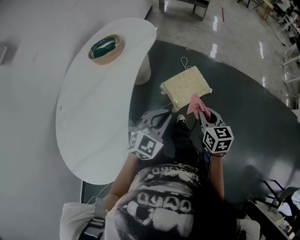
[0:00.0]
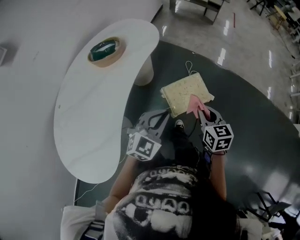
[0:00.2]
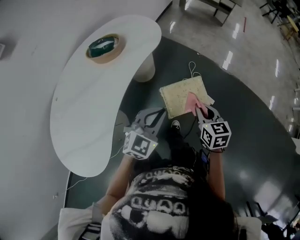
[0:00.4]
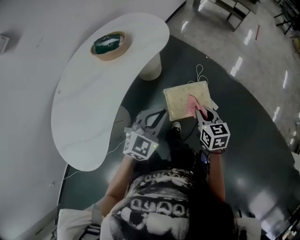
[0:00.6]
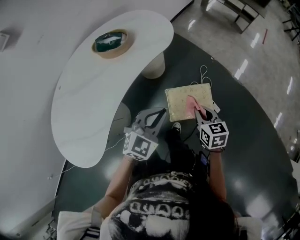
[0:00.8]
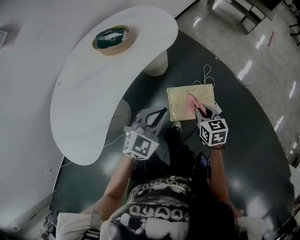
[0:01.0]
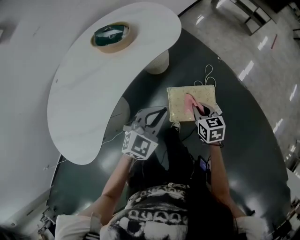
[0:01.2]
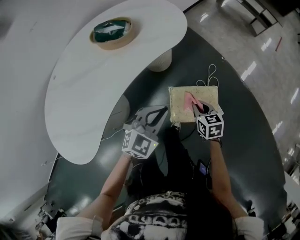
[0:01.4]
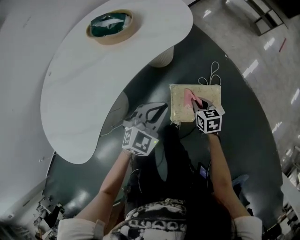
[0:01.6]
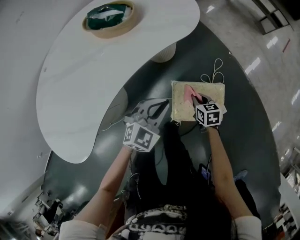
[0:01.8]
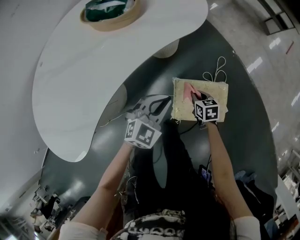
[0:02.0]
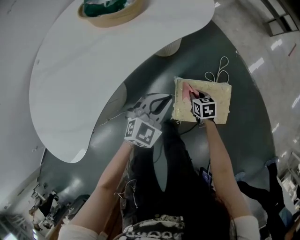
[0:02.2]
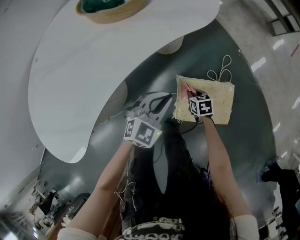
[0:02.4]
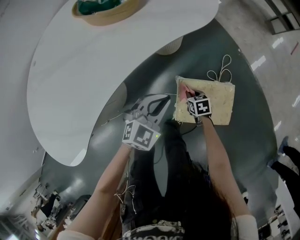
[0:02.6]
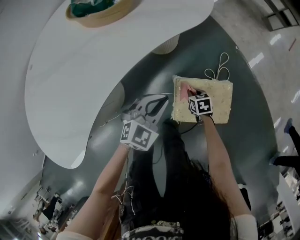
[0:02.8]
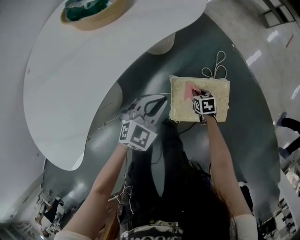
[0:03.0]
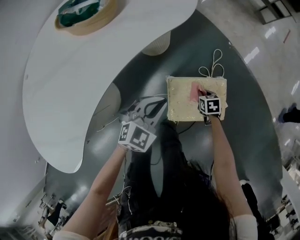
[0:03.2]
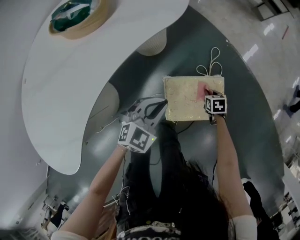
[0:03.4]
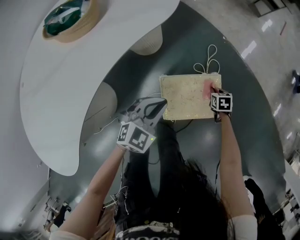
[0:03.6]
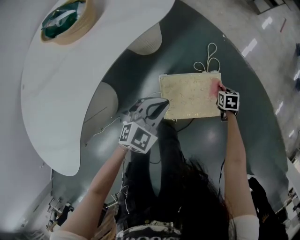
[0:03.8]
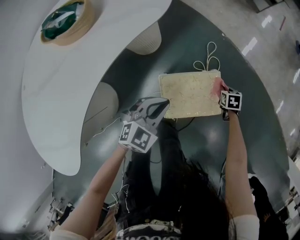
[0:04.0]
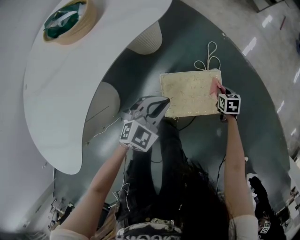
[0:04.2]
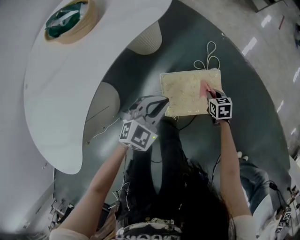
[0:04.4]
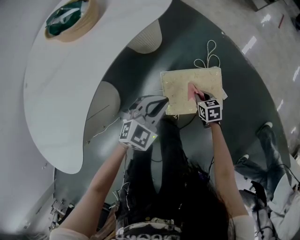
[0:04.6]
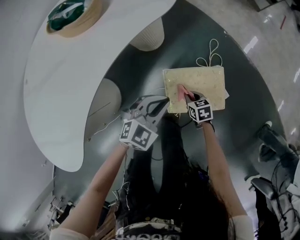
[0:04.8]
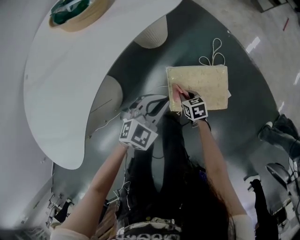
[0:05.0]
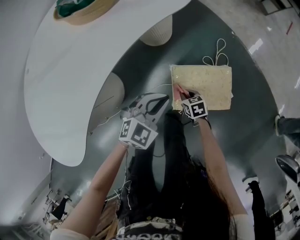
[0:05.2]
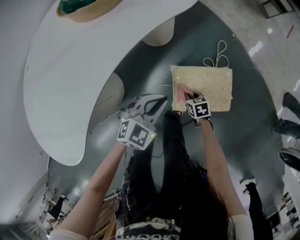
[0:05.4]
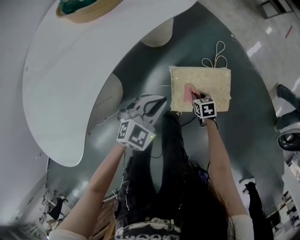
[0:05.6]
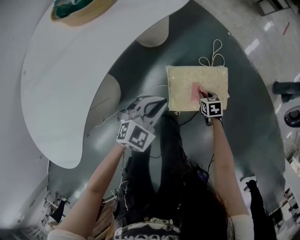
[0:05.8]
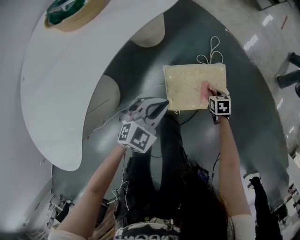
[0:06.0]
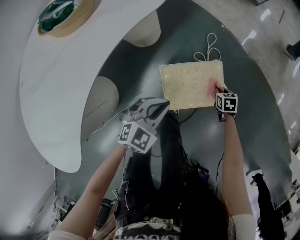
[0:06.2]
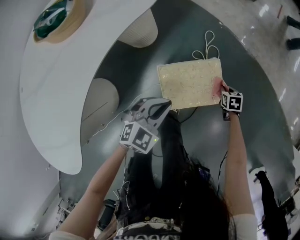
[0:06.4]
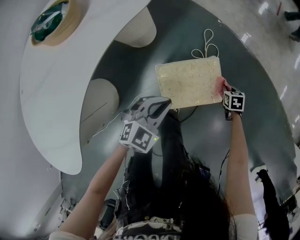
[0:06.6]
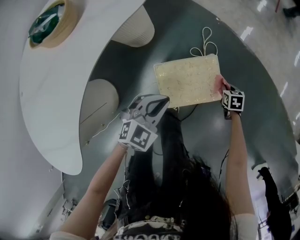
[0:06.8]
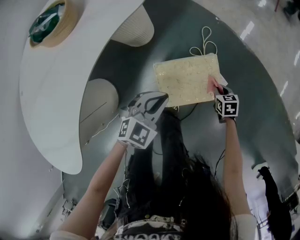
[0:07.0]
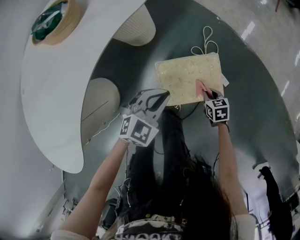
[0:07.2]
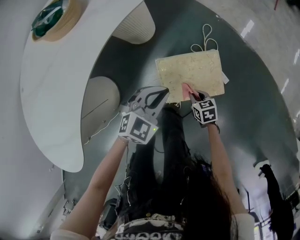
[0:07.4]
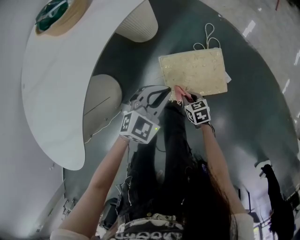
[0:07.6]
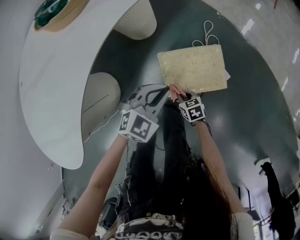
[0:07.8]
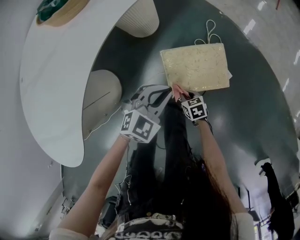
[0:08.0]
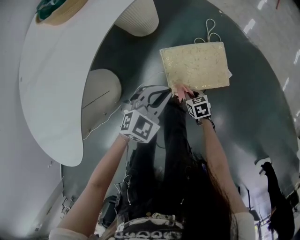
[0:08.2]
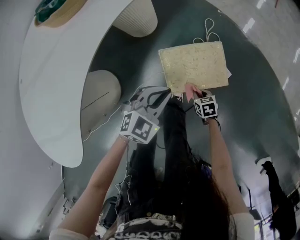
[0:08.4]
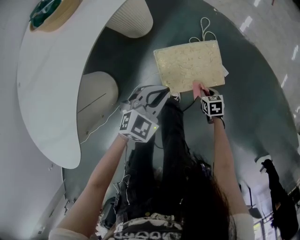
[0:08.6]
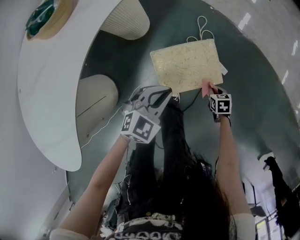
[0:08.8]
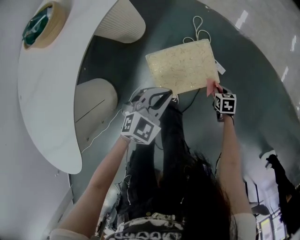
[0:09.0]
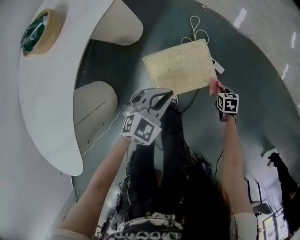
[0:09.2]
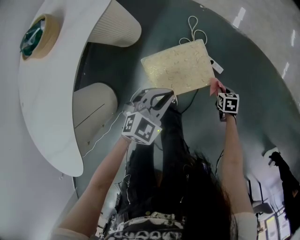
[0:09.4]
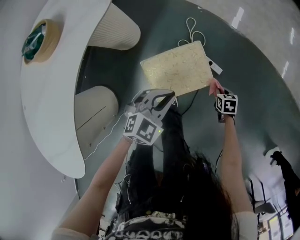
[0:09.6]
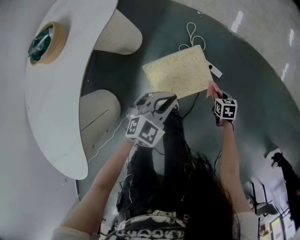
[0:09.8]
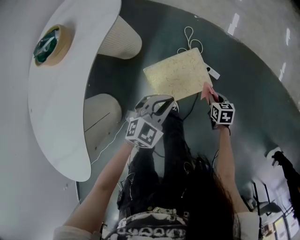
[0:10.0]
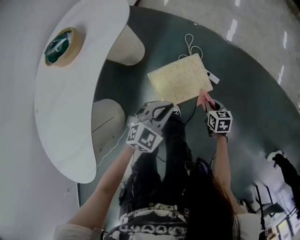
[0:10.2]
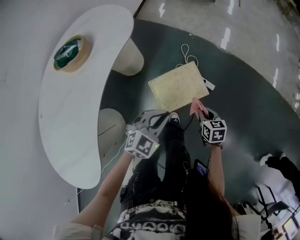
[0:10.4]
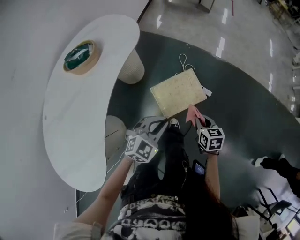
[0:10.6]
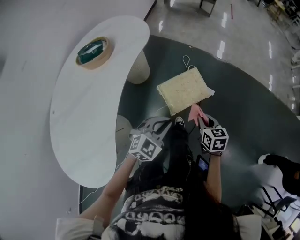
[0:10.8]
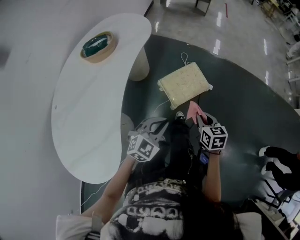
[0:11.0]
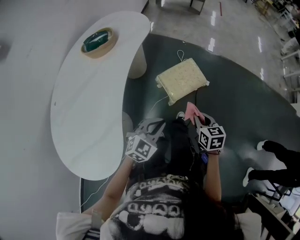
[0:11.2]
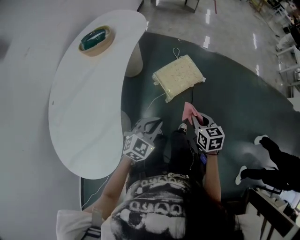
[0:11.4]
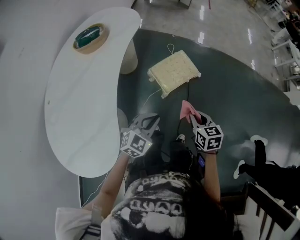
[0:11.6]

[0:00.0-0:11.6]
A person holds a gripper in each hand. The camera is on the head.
0:00.0 to 0:01.4: The left gripper changes place by roughly 20 cm, and turns by about 30 degrees. Meanwhile the right gripper moves roughly 30 cm, and changes its angle by about 40 degrees.
0:01.4 to 0:02.8: The left gripper is displaced downward by approximately 15 cm. The right gripper goes some 30 cm downward, and swivels about 20 degrees.
0:02.8 to 0:04.4: The right gripper changes place by about 20 cm. The left gripper ends up about 10 cm from where it was.
0:04.4 to 0:05.8: Both grippers travel together to the left, some 5 cm.
0:05.8 to 0:07.2: The right gripper travels to the right and back again, about 20 cm each way. Meanwhile the left gripper shifts about 5 cm to the right.
0:07.2 to 0:08.8: The two grippers go about 5 cm backward. The right gripper travels to the left and back again, approximately 15 cm each way.
0:08.8 to 0:10.2: The left gripper travels upward by roughly 10 cm, while the right gripper heads upward, covering roughly 15 cm.
0:10.2 to 0:11.6: The left gripper moves backward and upward, about 30 cm. The right gripper shifts roughly 40 cm backward, upward and to the left.

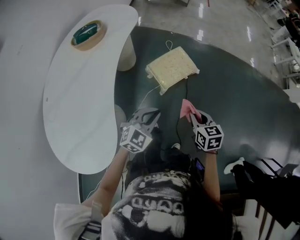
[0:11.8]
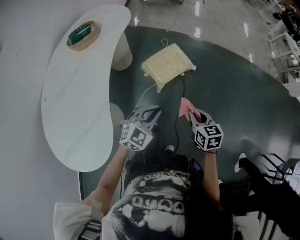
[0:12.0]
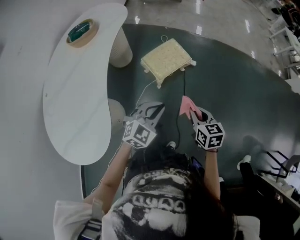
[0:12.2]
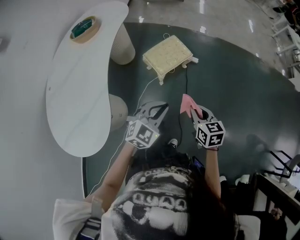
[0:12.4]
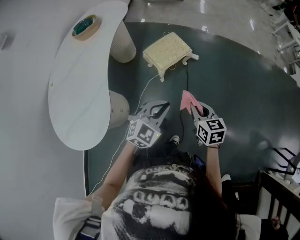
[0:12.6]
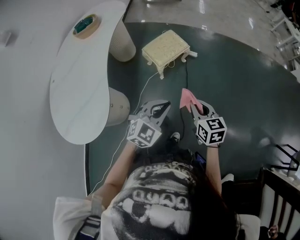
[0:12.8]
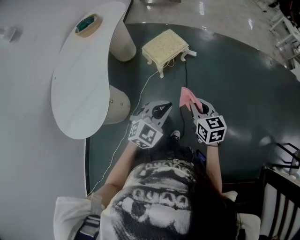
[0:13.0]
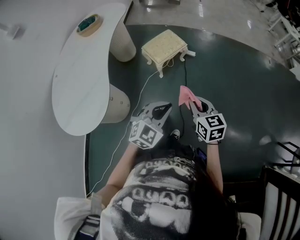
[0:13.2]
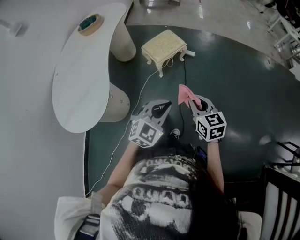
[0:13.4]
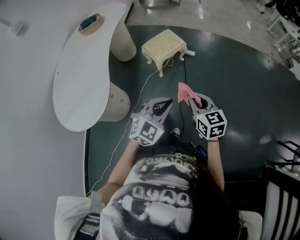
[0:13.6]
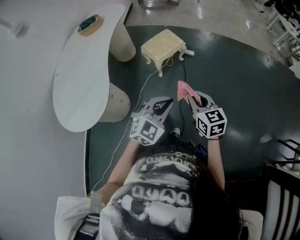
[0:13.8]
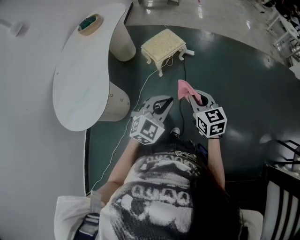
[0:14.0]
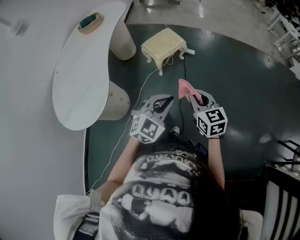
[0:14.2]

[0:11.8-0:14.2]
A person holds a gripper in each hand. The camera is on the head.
0:11.8 to 0:13.0: The two grippers go approximately 25 cm backward and to the right.
0:13.0 to 0:14.2: The two grippers go about 5 cm backward.

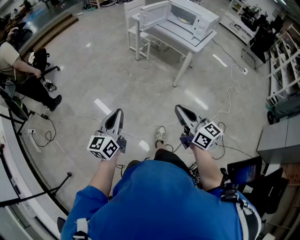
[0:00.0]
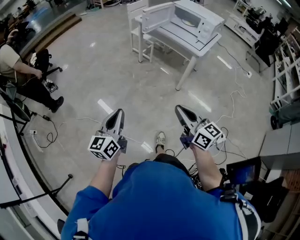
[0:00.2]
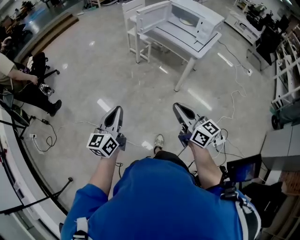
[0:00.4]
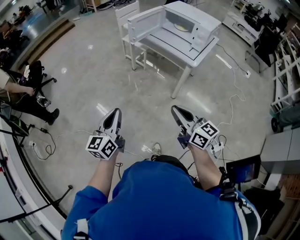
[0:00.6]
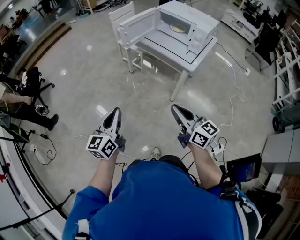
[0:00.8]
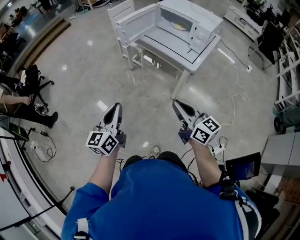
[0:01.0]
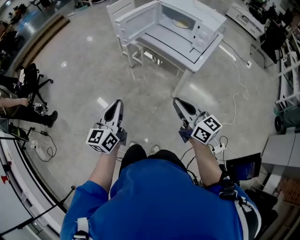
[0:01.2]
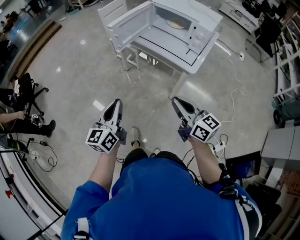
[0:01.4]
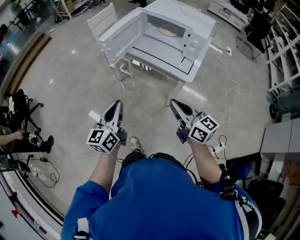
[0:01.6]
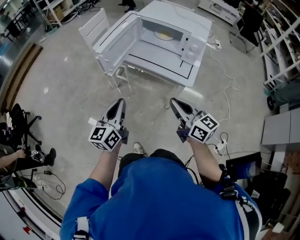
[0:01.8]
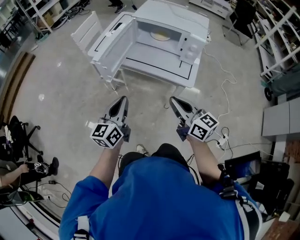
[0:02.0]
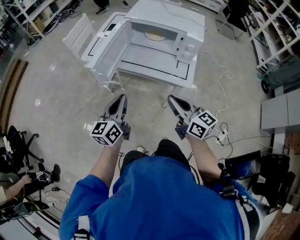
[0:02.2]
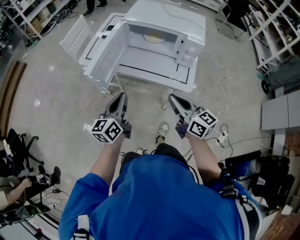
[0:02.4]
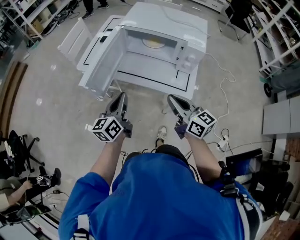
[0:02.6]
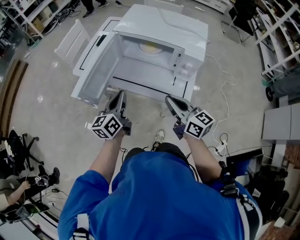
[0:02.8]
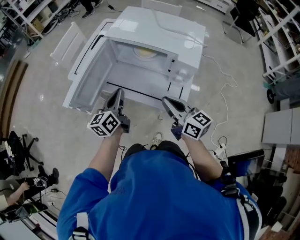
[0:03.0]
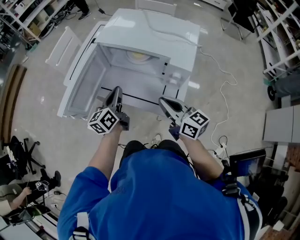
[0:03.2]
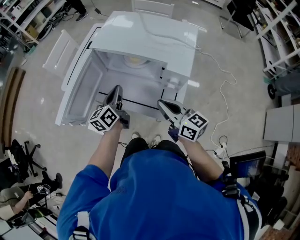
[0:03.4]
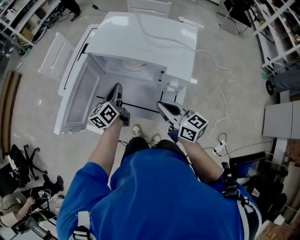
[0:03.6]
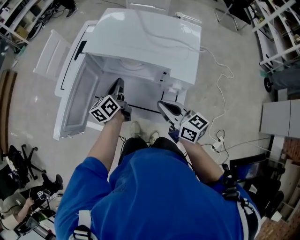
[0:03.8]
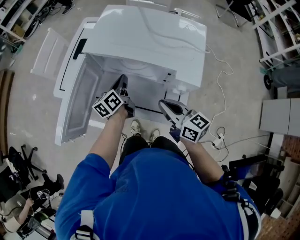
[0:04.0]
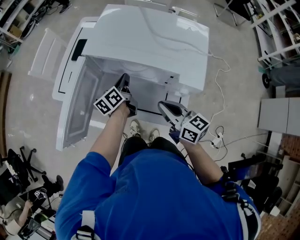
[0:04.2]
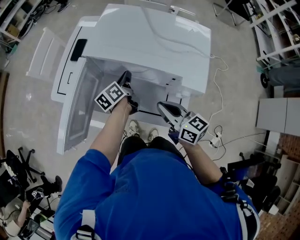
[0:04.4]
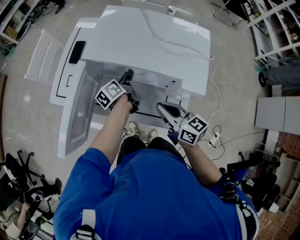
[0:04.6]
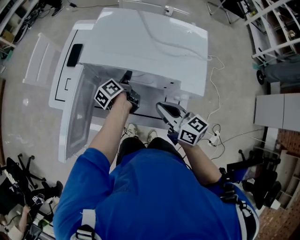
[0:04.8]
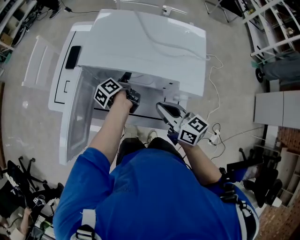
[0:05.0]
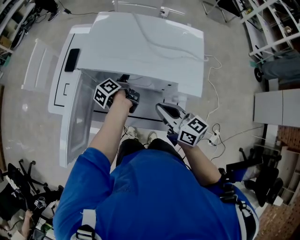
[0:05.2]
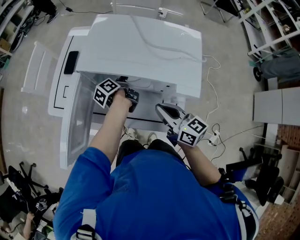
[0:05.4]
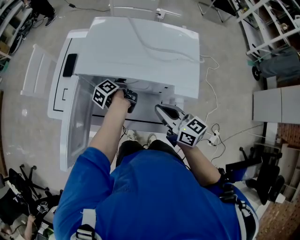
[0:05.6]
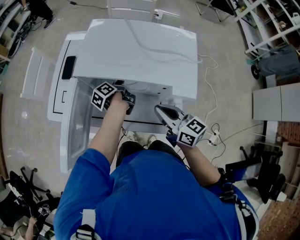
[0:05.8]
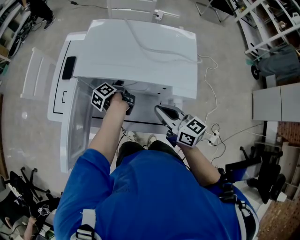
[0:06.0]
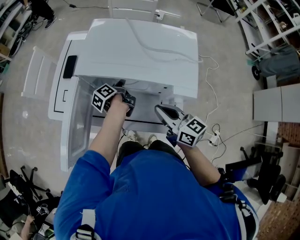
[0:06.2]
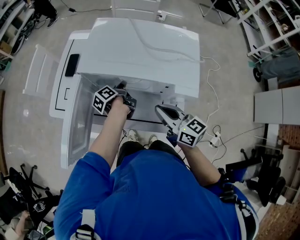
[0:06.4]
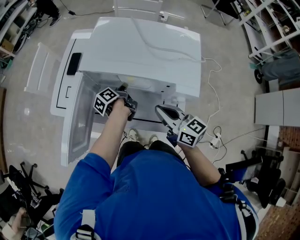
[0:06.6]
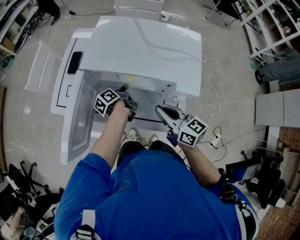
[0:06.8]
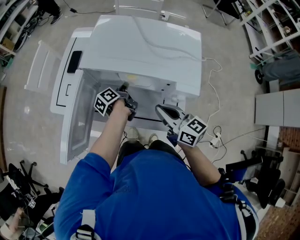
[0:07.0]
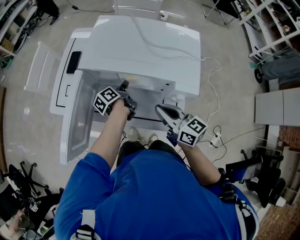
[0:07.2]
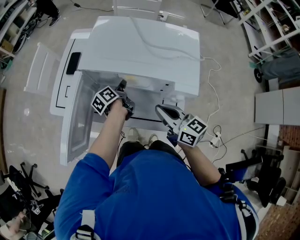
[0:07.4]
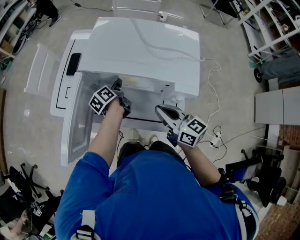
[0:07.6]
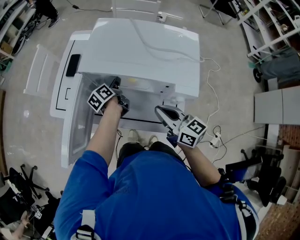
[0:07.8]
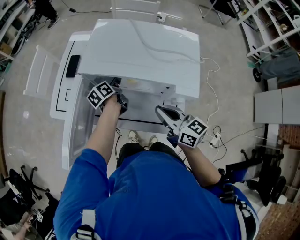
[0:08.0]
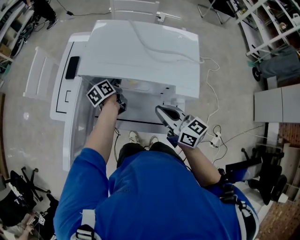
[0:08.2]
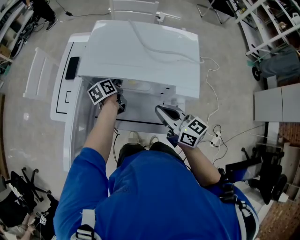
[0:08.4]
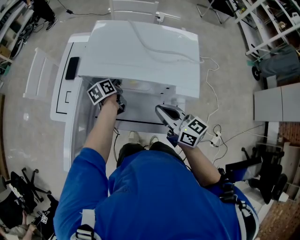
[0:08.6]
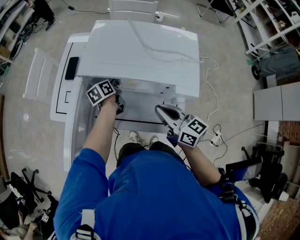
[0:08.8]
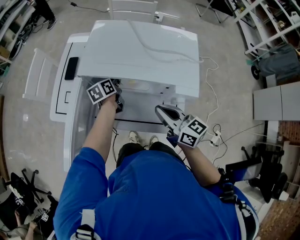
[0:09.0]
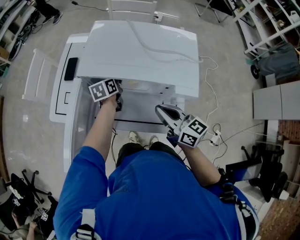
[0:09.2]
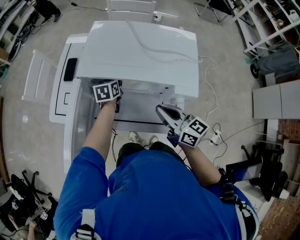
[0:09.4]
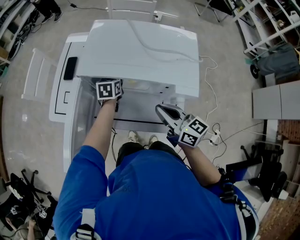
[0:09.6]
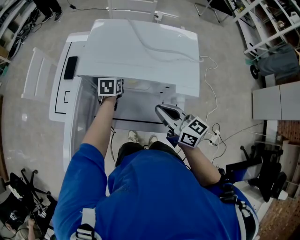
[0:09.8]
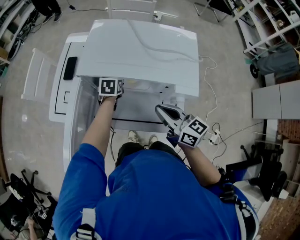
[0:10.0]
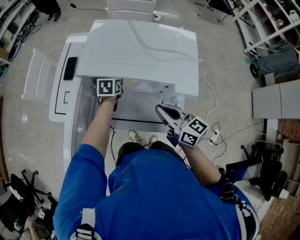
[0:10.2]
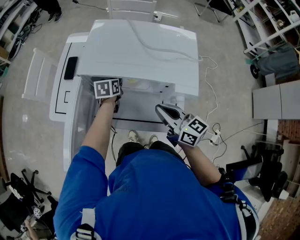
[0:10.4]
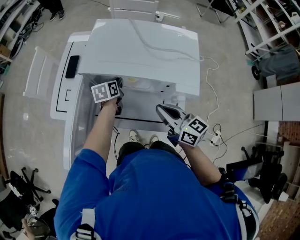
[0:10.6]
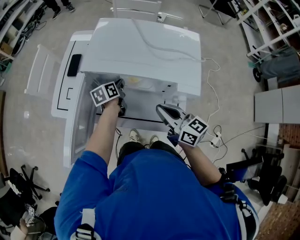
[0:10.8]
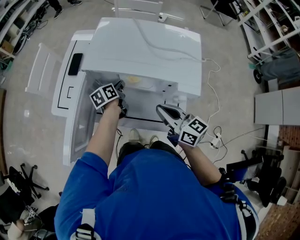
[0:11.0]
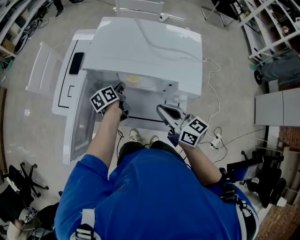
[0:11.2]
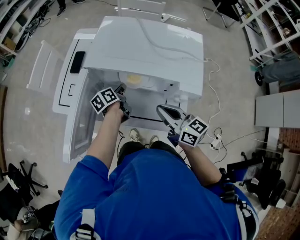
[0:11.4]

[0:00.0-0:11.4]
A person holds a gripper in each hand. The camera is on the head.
0:00.0 to 0:01.4: Both grippers move forward and to the right, approximately 40 cm.
0:01.4 to 0:02.8: Both grippers travel together forward, roughly 30 cm.
0:02.8 to 0:04.2: The left gripper heads forward, to the right and downward, covering some 25 cm, and turns by about 30 degrees. Meanwhile the right gripper goes roughly 10 cm forward.
0:04.2 to 0:05.6: The left gripper moves forward, approximately 5 cm, swivels some 30 degrees, and opens.
0:05.6 to 0:07.2: There are only small adjustments of the grippers.
0:07.2 to 0:08.6: The left gripper heads forward, covering approximately 5 cm, and rotates some 30 degrees.
0:08.6 to 0:10.0: The left gripper rotates around the line of its fingers by some 40 degrees, clockwise from behind, and opens.
0:10.0 to 0:11.4: The left gripper shifts some 5 cm backward, twists roughly 50 degrees counterclockwise, seen from behind, and closes up.
